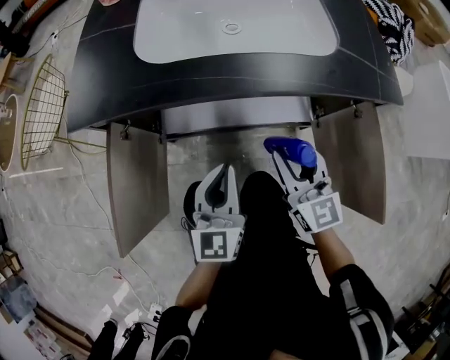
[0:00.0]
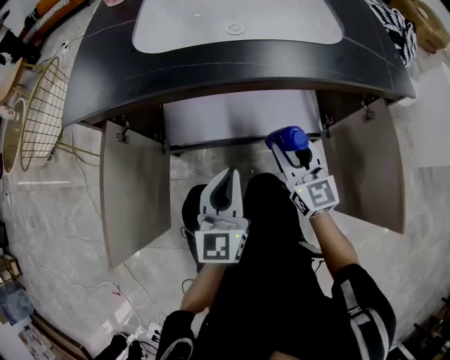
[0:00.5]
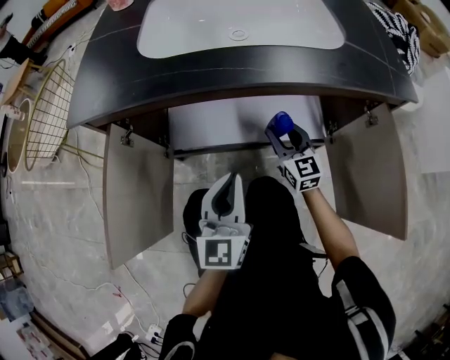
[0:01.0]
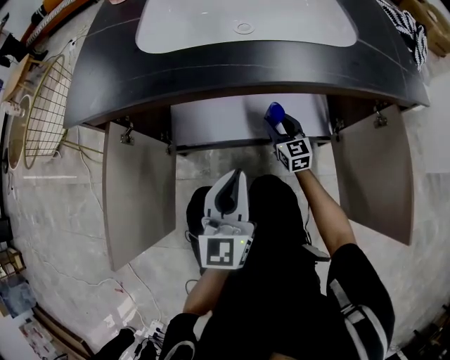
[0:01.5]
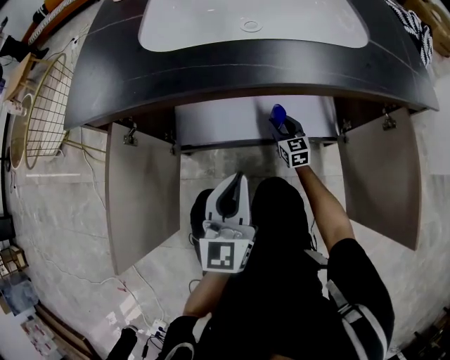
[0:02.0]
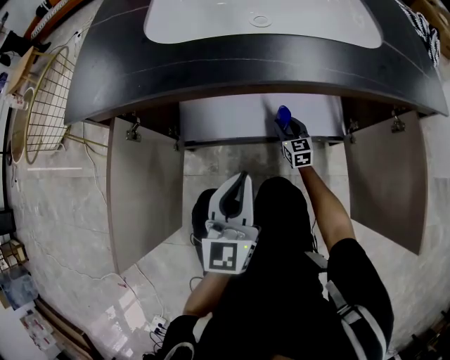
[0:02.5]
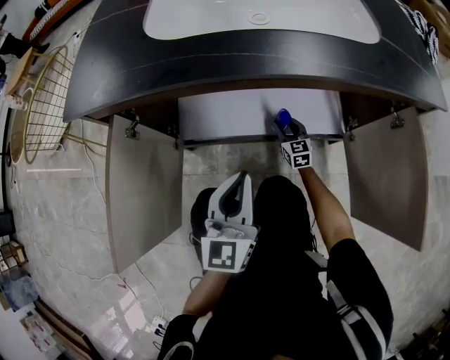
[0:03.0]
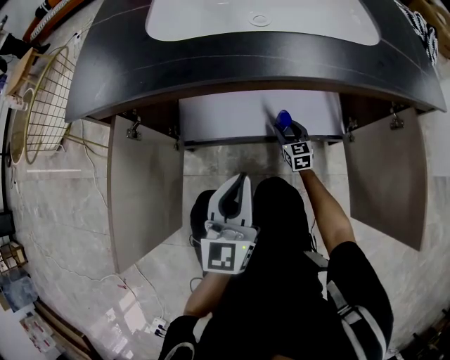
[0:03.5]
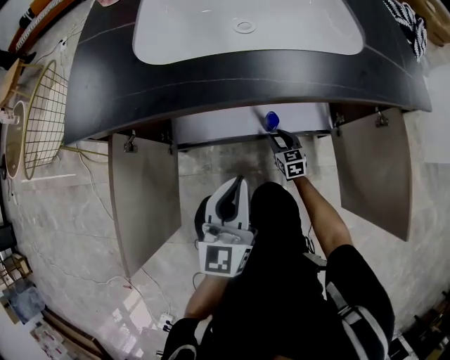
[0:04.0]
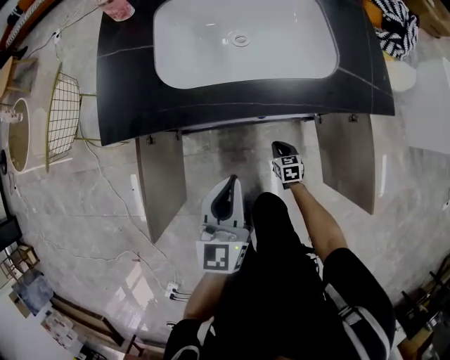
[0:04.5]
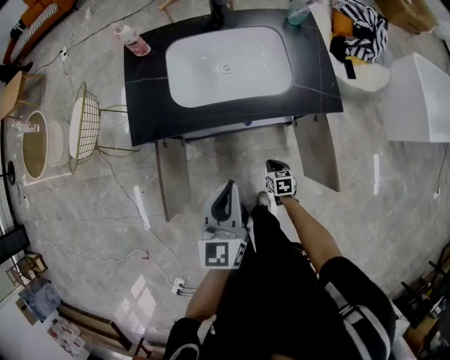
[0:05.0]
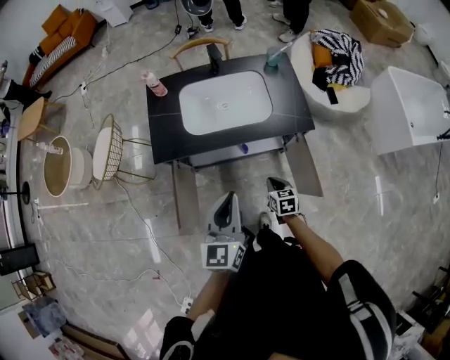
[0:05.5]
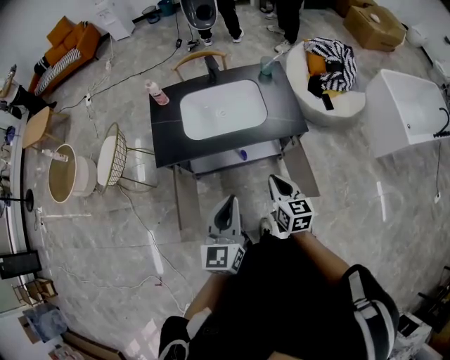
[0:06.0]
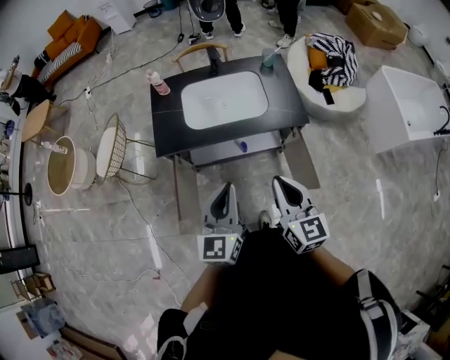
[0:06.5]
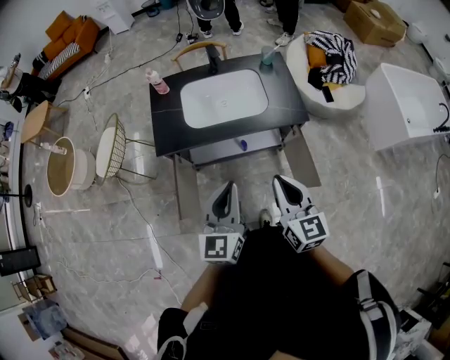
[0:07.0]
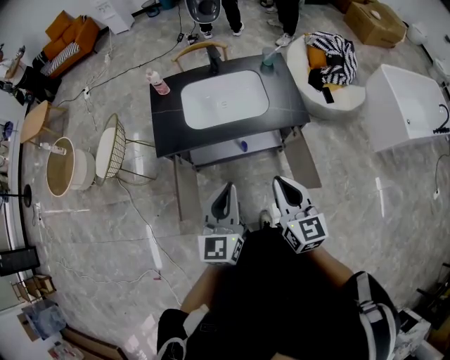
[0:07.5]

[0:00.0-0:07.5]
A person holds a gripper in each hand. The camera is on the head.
0:00.0 to 0:02.0: The right gripper travels downward and forward by roughly 40 cm, while the left gripper shifts about 5 cm downward.
0:02.0 to 0:04.0: The right gripper is displaced backward by about 5 cm.
0:04.0 to 0:05.5: The left gripper goes approximately 50 cm upward. Meanwhile the right gripper goes approximately 60 cm upward and backward, changes its angle by about 20 degrees, and closes up.
0:05.5 to 0:07.5: The left gripper moves approximately 5 cm; the right gripper shifts about 30 cm upward, and points its fingers approximately 30 degrees further upward.

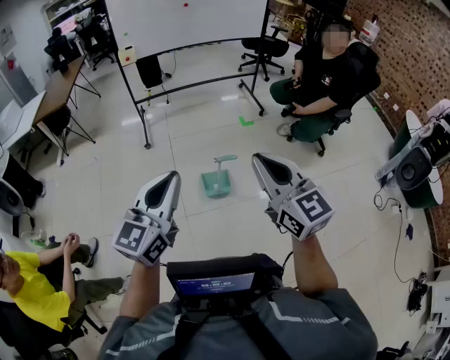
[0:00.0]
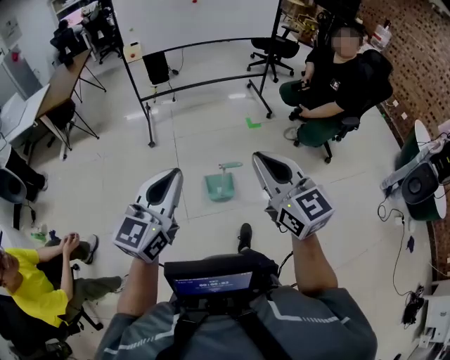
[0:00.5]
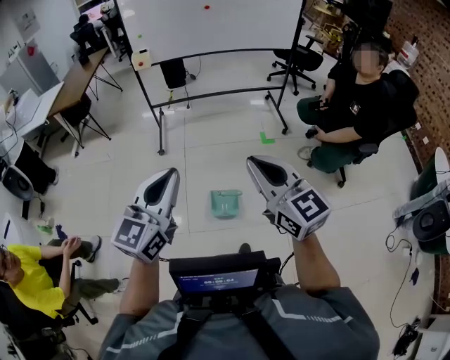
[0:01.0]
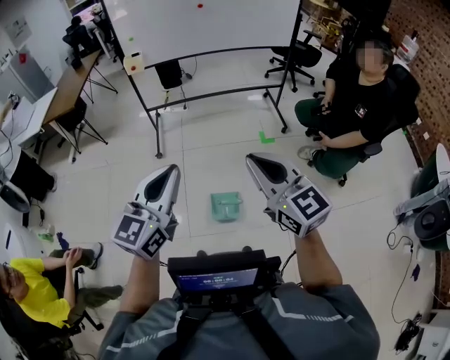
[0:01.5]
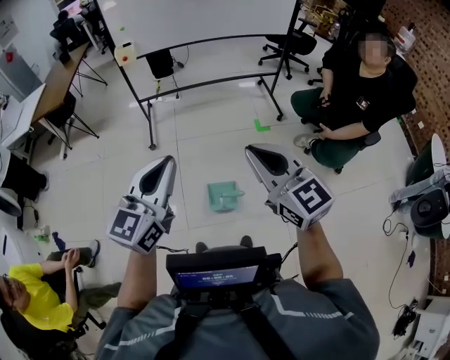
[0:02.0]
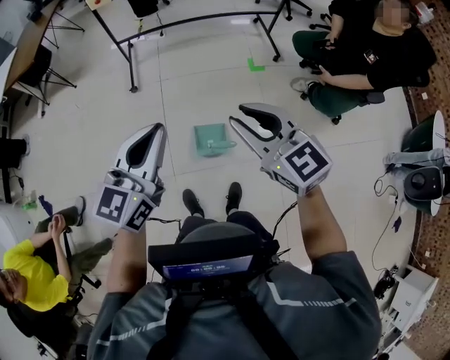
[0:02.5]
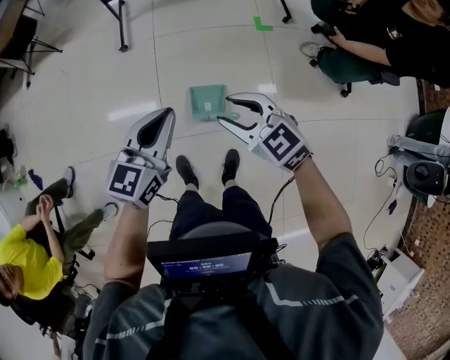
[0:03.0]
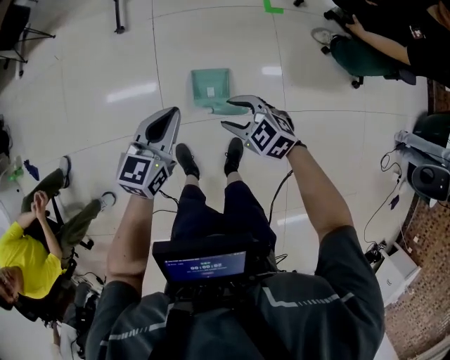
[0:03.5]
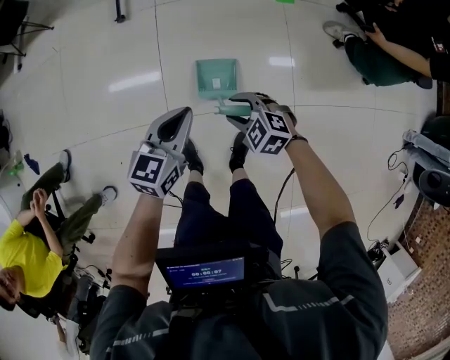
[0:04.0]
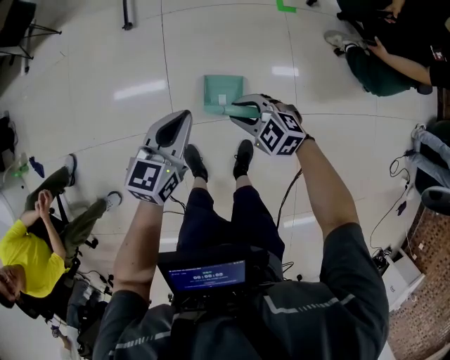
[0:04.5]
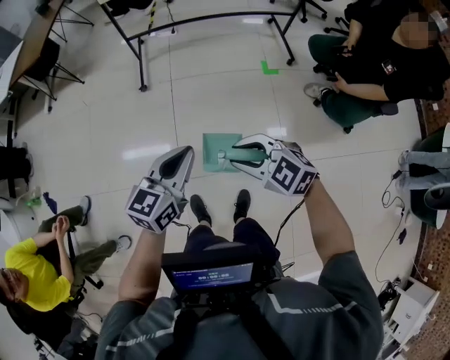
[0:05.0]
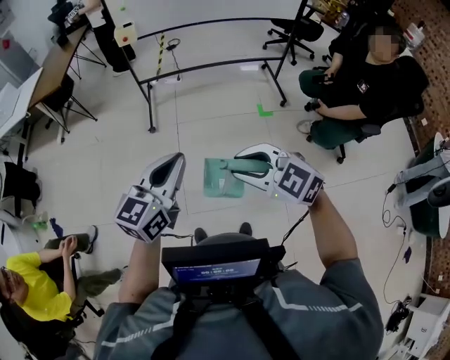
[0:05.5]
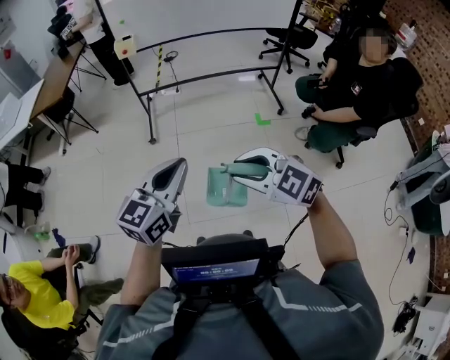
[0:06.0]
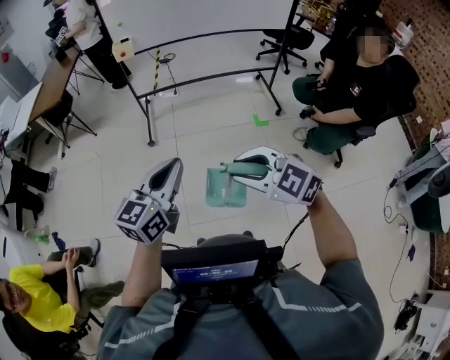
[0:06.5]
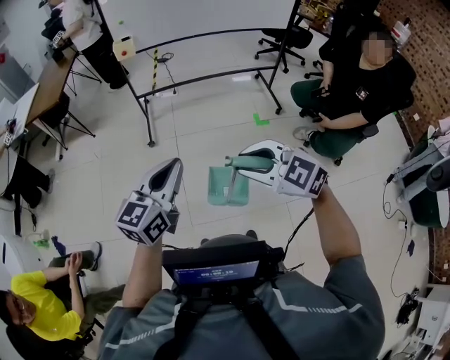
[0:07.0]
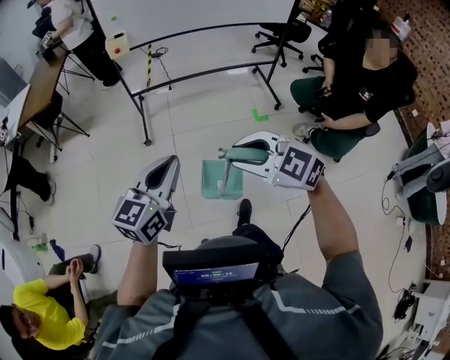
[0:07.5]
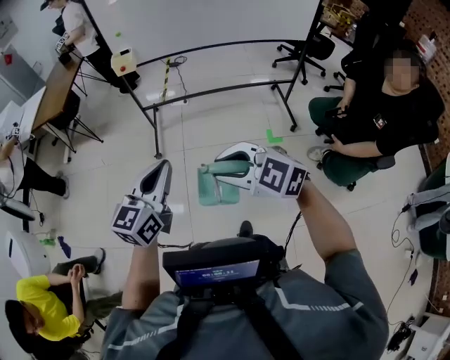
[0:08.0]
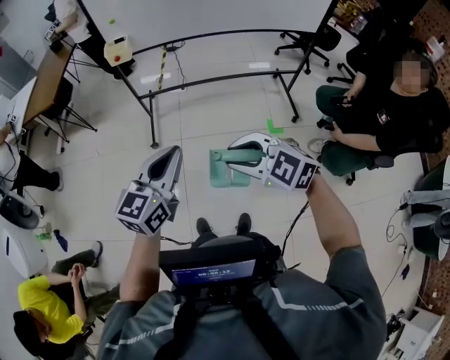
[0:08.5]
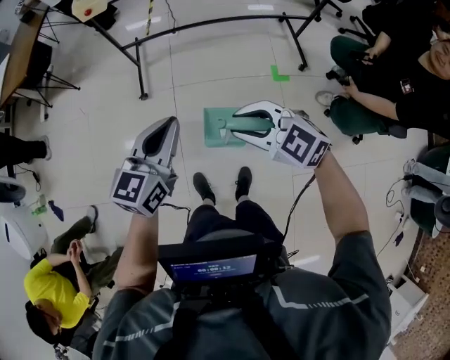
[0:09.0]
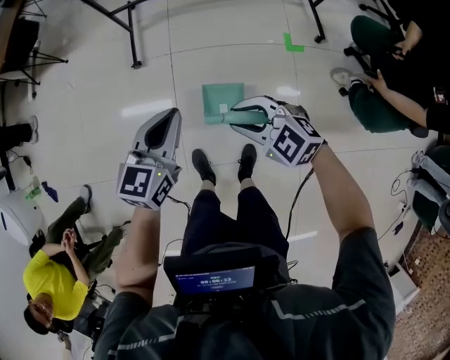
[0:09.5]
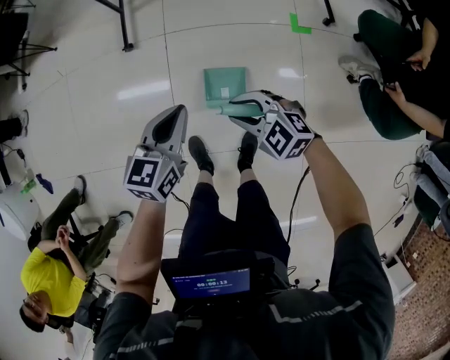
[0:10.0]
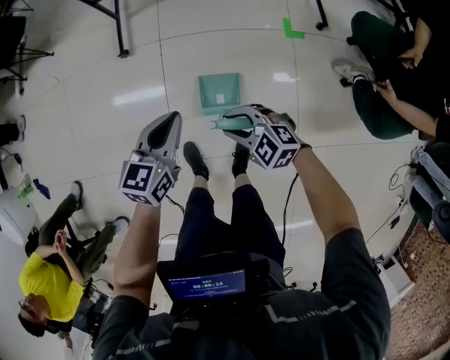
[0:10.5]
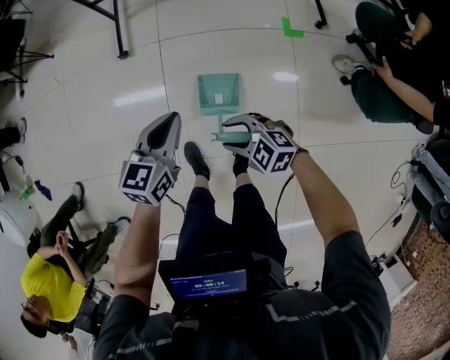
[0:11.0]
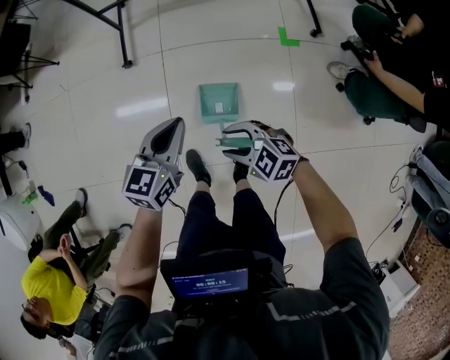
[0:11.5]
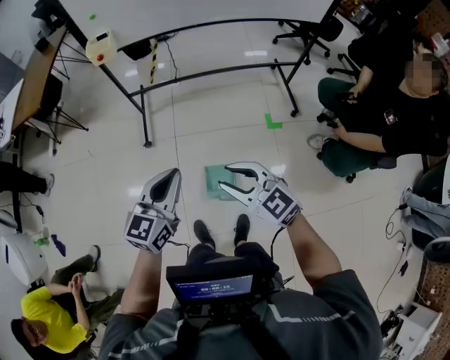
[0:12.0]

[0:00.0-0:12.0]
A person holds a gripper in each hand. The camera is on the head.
0:00.0 to 0:02.0: The two grippers travel together, forward, approximately 40 cm.
0:02.0 to 0:04.0: Both grippers move downward, about 70 cm. The left gripper turns by about 30 degrees. The right gripper tilts its fingers approximately 50 degrees downward, and opens.
0:04.0 to 0:06.0: The grippers both shift upward by approximately 60 cm. The left gripper turns by some 20 degrees, while the right gripper rotates about 30 degrees.
0:06.0 to 0:08.0: Both grippers travel together forward, some 30 cm.
0:08.0 to 0:10.0: Both grippers move downward and forward, roughly 60 cm. The left gripper turns by some 20 degrees.
0:10.0 to 0:12.0: The two grippers go about 40 cm upward. The right gripper rotates approximately 30 degrees.

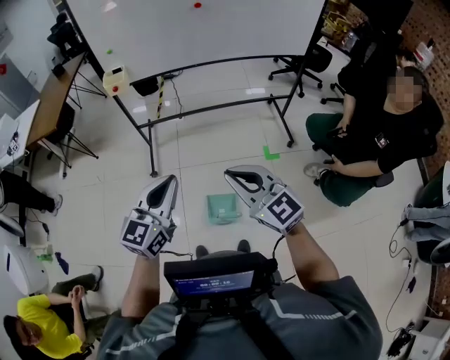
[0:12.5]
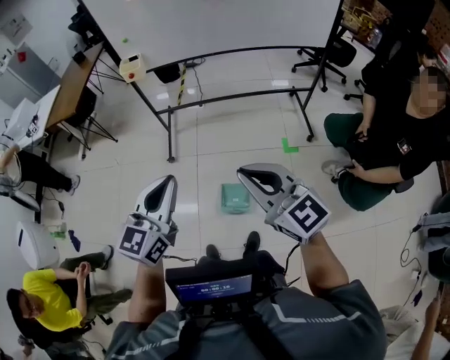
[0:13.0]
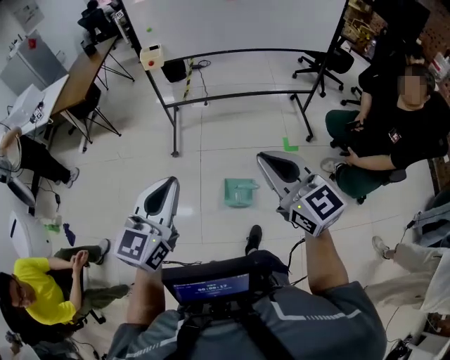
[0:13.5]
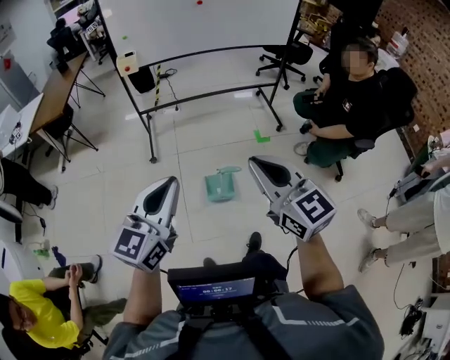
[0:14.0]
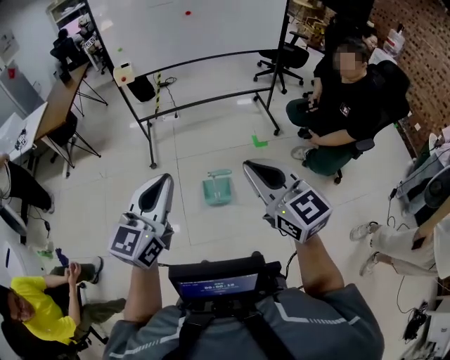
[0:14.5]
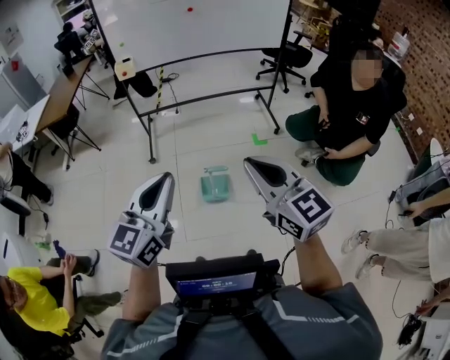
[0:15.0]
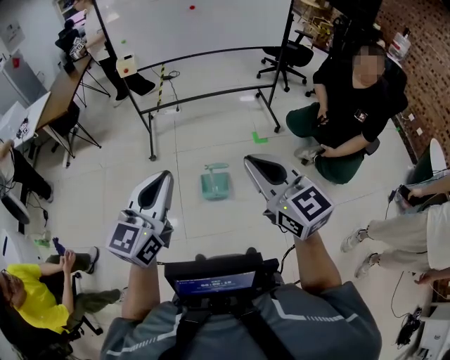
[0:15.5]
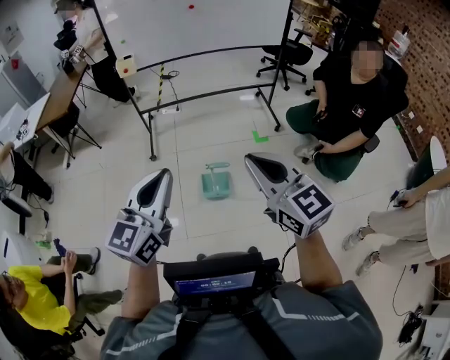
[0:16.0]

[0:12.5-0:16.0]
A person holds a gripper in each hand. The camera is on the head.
0:12.5 to 0:14.5: The two grippers travel together, backward, approximately 50 cm.
0:14.5 to 0:16.0: The grippers move only a little.

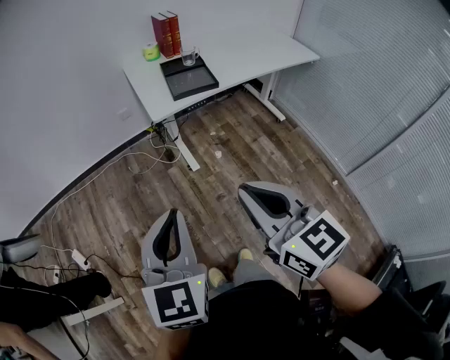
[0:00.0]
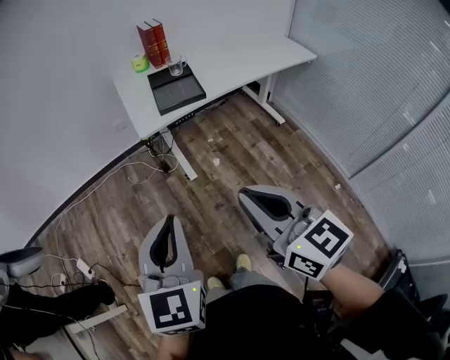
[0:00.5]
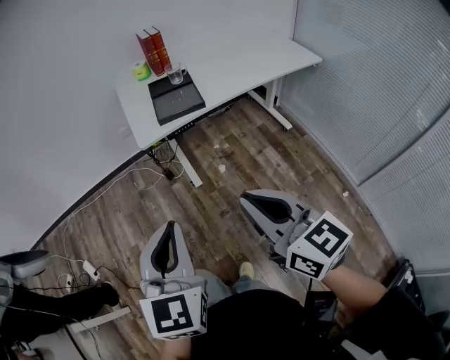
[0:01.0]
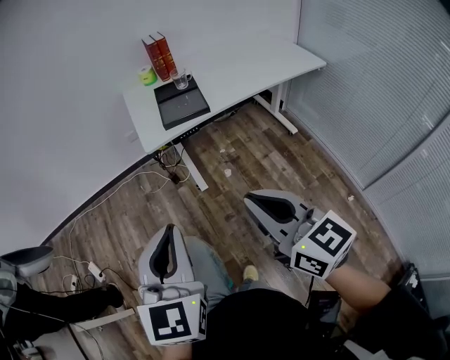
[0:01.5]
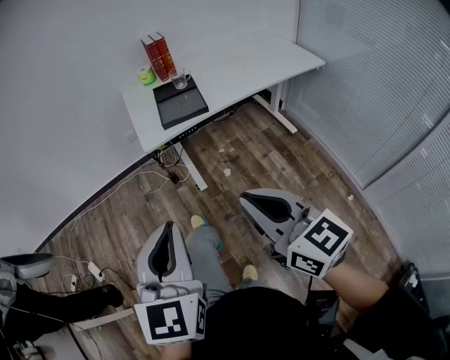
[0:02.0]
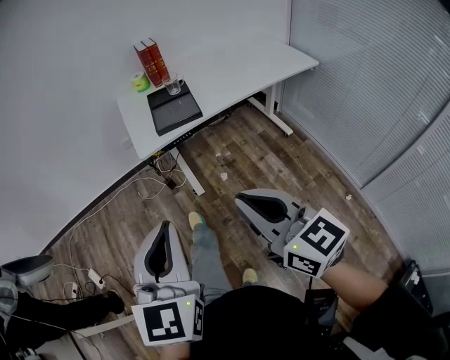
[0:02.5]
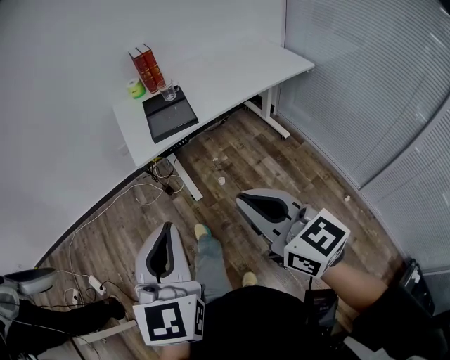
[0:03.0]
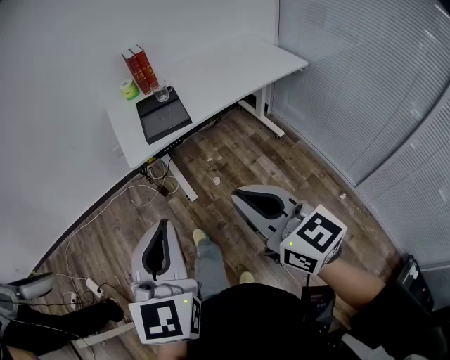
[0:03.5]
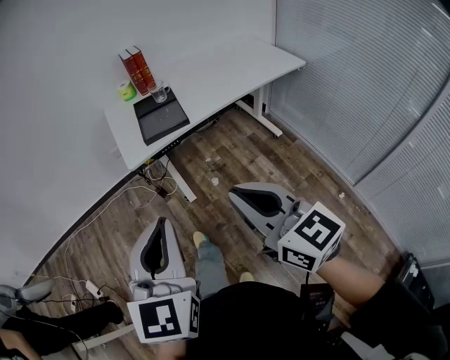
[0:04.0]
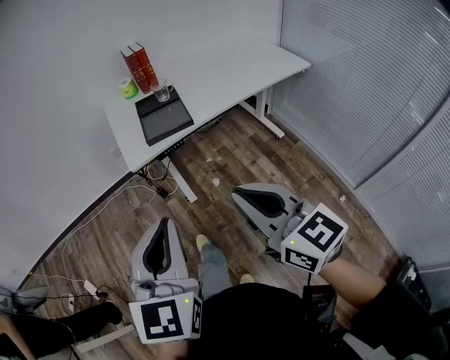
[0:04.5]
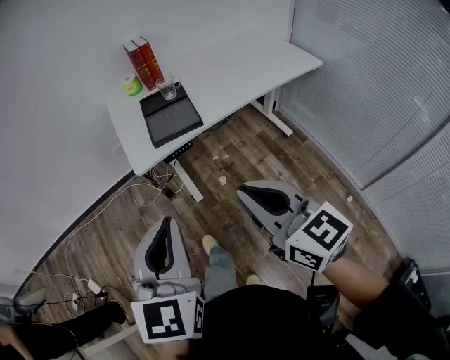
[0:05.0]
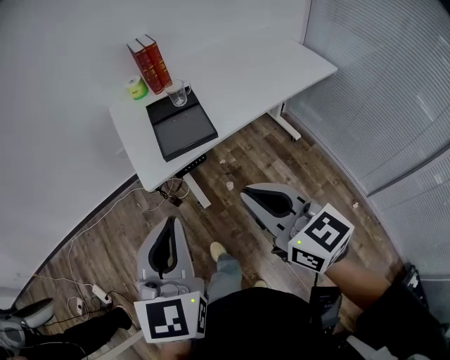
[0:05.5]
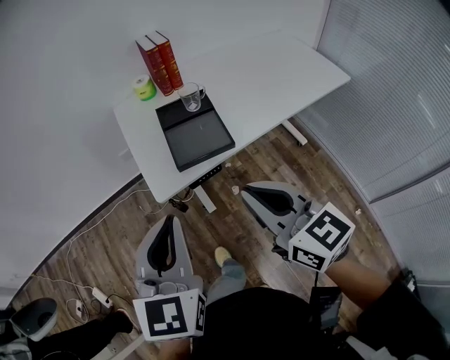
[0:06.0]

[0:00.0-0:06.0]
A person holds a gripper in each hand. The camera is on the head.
0:00.0 to 0:02.0: The grippers both shift to the right by roughly 15 cm.
0:02.0 to 0:04.0: The left gripper moves approximately 5 cm.
0:04.0 to 0:06.0: The grippers both shift forward by roughly 25 cm.
